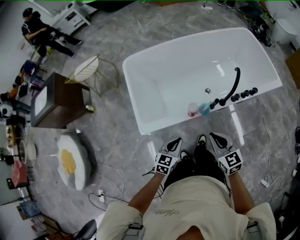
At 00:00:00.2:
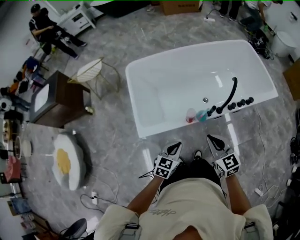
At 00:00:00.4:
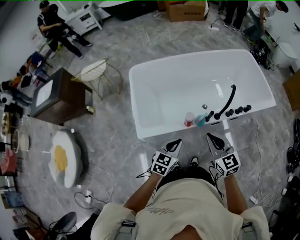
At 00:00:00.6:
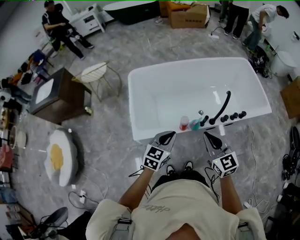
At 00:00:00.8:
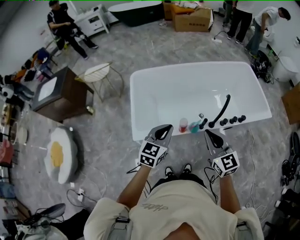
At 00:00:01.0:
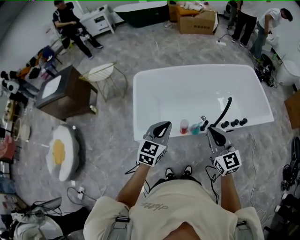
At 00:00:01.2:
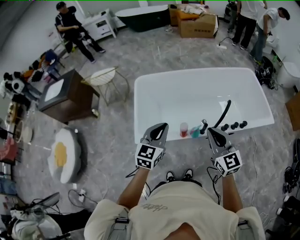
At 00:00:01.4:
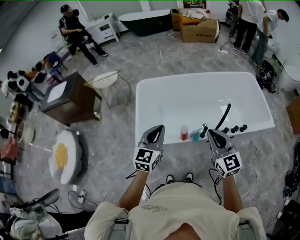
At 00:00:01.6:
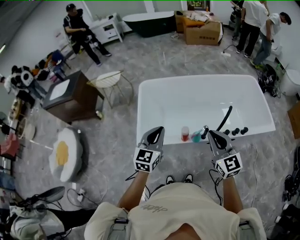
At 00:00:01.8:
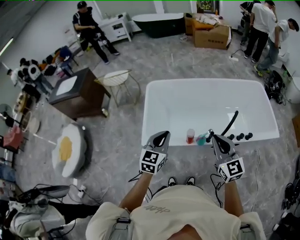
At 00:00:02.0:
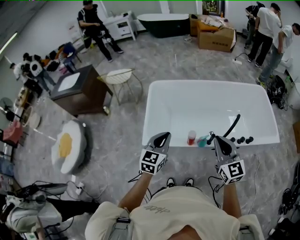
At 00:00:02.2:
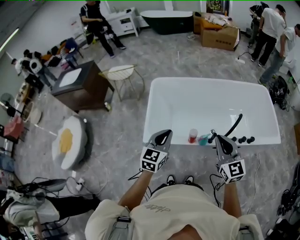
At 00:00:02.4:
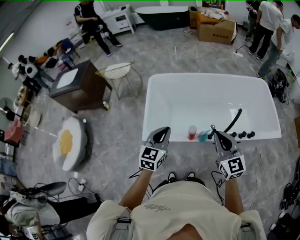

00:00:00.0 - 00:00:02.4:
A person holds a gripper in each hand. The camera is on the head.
00:00:00.0 - 00:00:01.2: The two grippers go about 20 cm upward. The right gripper rotates about 20 degrees. Meanwhile the left gripper changes its angle by roughly 30 degrees.
00:00:01.2 - 00:00:02.4: There are only small adjustments of the grippers.

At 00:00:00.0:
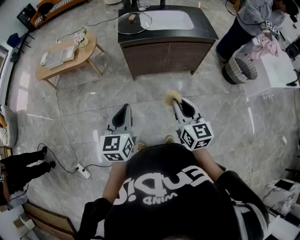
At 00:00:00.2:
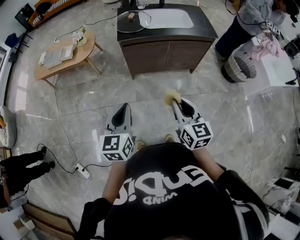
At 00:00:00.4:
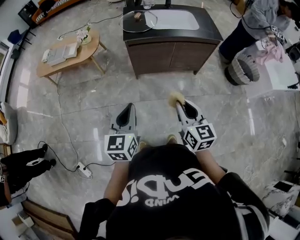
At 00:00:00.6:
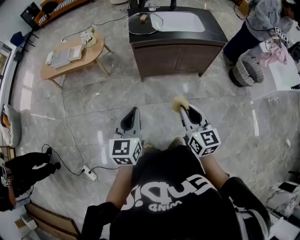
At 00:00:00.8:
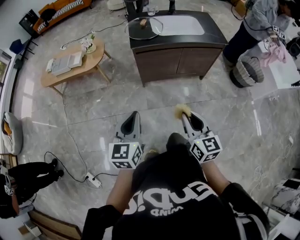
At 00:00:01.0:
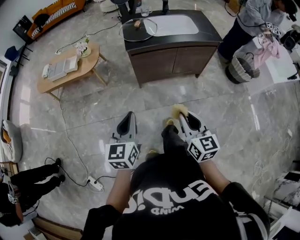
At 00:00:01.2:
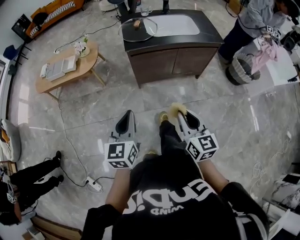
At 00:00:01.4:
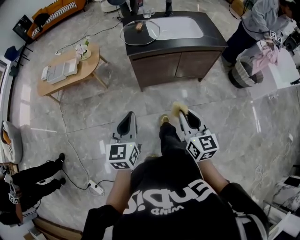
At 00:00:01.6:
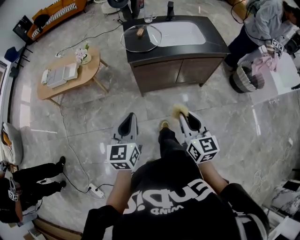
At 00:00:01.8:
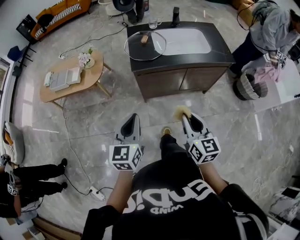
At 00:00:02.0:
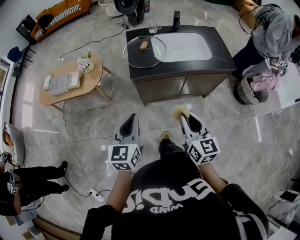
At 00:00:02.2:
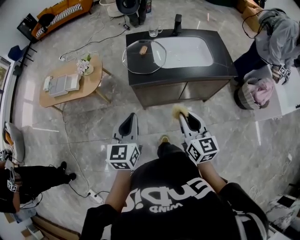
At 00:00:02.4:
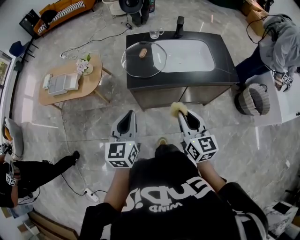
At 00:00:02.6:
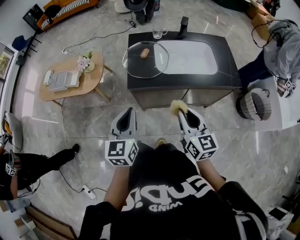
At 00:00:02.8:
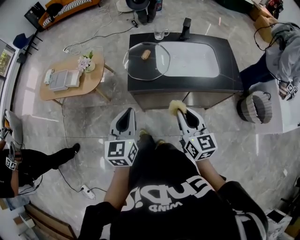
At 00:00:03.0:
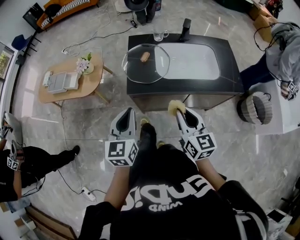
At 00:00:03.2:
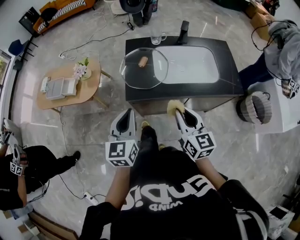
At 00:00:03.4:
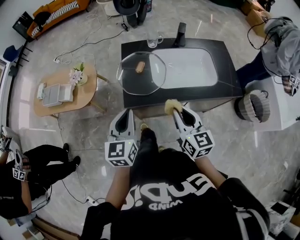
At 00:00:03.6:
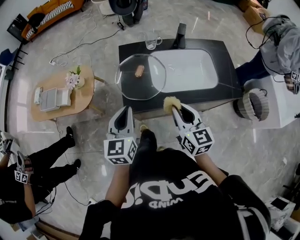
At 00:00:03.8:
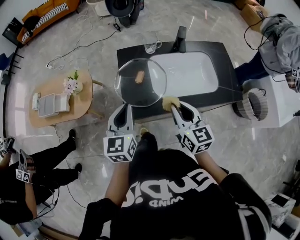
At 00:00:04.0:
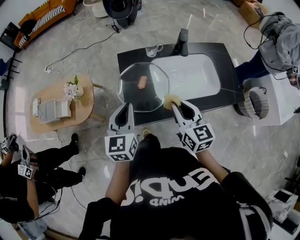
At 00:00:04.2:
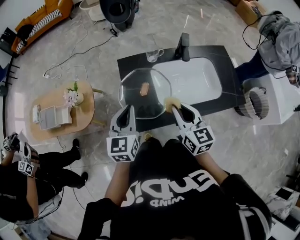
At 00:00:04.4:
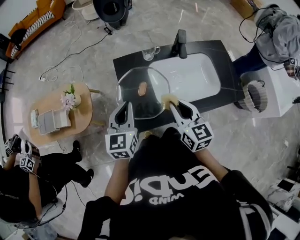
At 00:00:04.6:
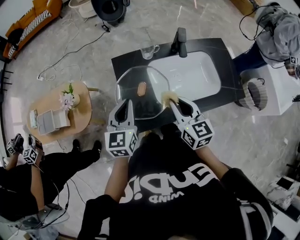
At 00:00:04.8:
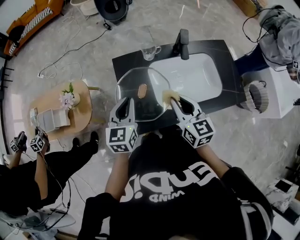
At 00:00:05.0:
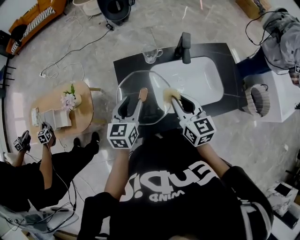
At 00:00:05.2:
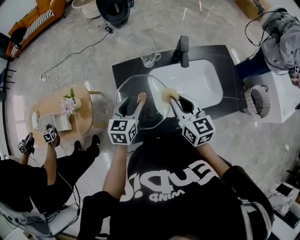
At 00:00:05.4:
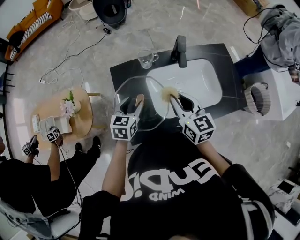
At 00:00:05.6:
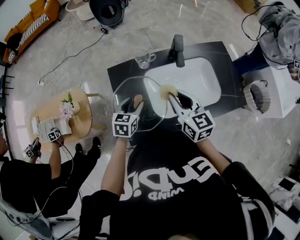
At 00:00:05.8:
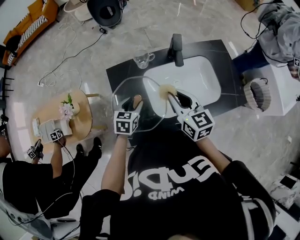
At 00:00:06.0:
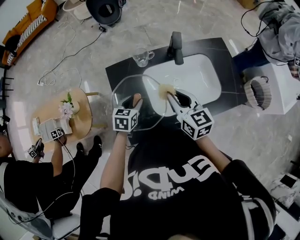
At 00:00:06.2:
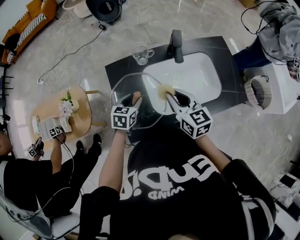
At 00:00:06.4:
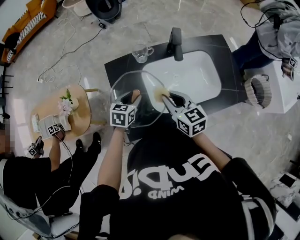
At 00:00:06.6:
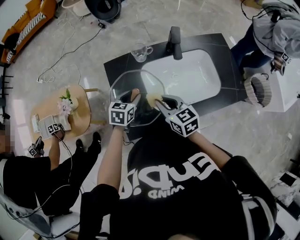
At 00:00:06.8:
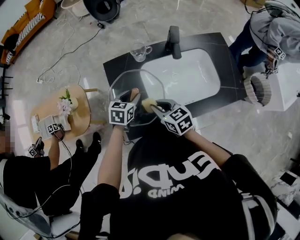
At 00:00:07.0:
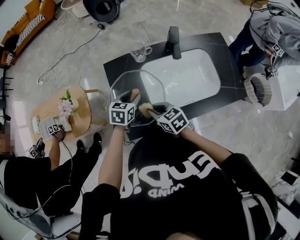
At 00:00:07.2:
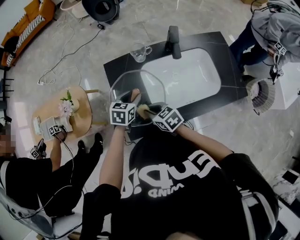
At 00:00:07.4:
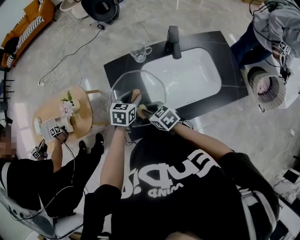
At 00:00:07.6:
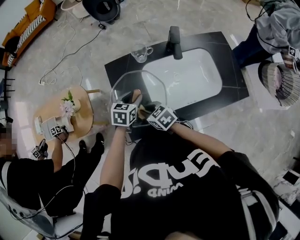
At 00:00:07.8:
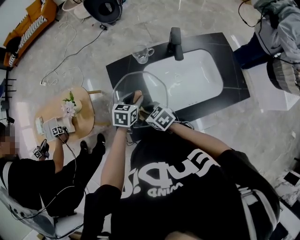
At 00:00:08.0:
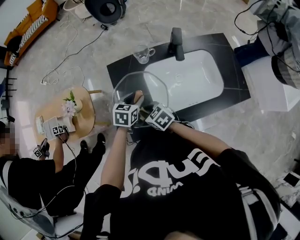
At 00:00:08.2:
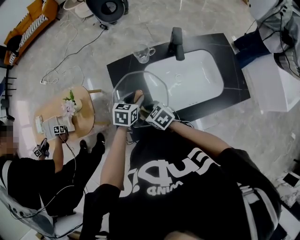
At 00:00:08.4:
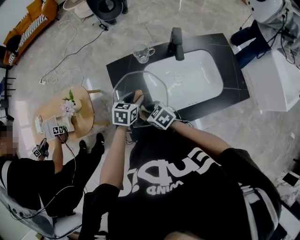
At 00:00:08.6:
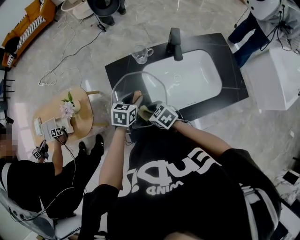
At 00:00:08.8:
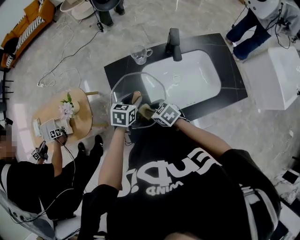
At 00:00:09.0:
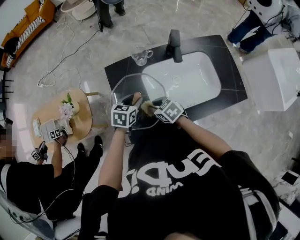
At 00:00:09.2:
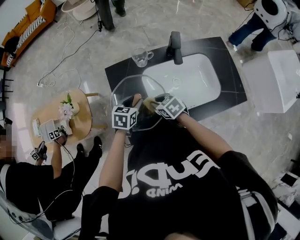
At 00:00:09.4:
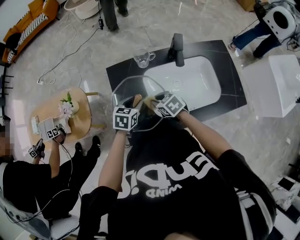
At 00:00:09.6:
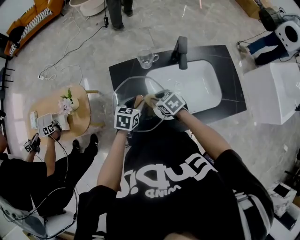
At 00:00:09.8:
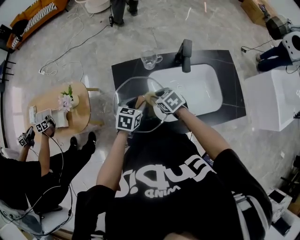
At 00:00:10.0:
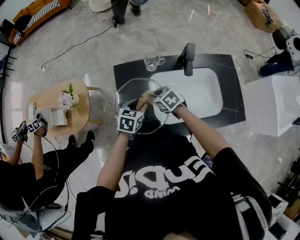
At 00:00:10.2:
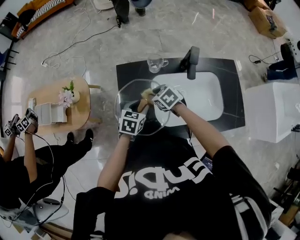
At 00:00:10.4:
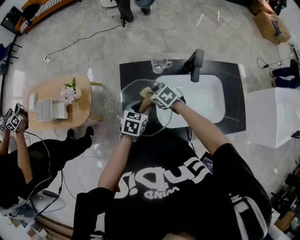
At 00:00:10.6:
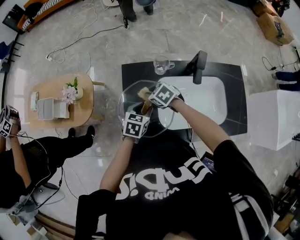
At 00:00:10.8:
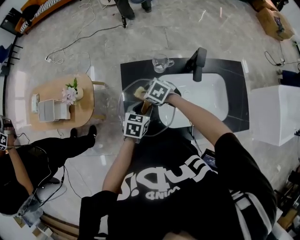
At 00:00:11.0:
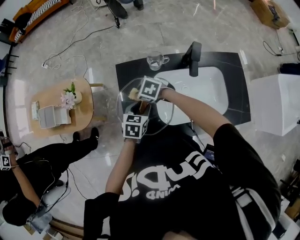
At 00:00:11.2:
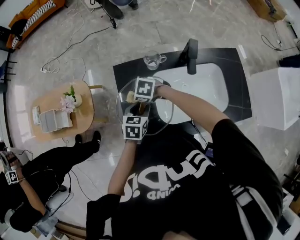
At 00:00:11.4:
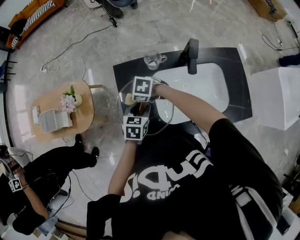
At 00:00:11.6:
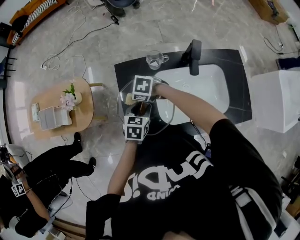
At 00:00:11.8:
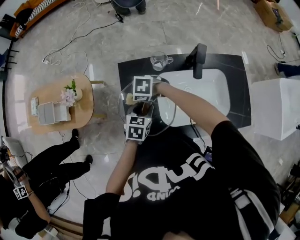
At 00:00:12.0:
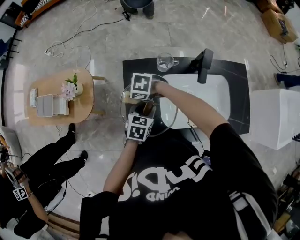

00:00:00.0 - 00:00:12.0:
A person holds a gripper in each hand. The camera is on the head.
00:00:00.0 - 00:00:01.6: The two grippers go roughly 15 cm forward and to the left.
00:00:01.6 - 00:00:03.0: The grippers both shift forward by some 25 cm.
00:00:03.0 - 00:00:04.4: Both grippers travel together forward, some 25 cm.
00:00:04.4 - 00:00:06.0: The right gripper heads forward, covering some 10 cm. Meanwhile the left gripper travels downward and forward by some 20 cm, turns by approximately 30 degrees, and opens up.
00:00:06.0 - 00:00:07.6: The right gripper heads downward and to the left, covering approximately 20 cm, and turns by approximately 40 degrees.
00:00:07.6 - 00:00:09.0: The right gripper is displaced to the right by approximately 5 cm.
00:00:09.0 - 00:00:10.4: The right gripper travels forward by about 10 cm.
00:00:10.4 - 00:00:12.0: The right gripper ends up about 10 cm from where it was, and rotates some 40 degrees.

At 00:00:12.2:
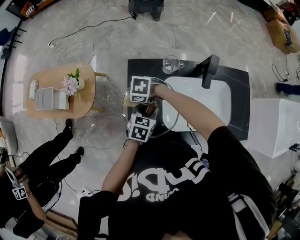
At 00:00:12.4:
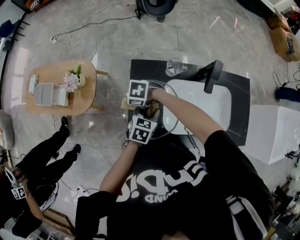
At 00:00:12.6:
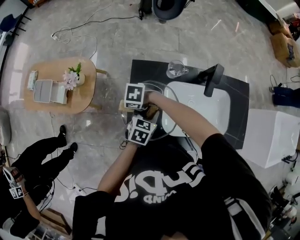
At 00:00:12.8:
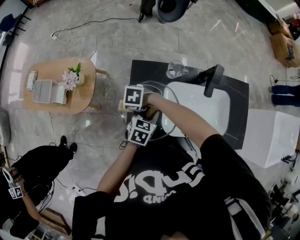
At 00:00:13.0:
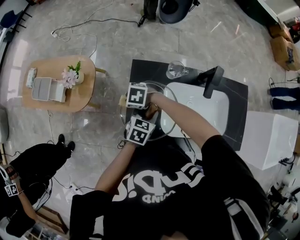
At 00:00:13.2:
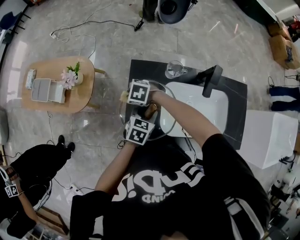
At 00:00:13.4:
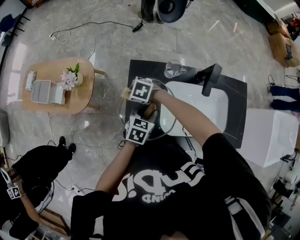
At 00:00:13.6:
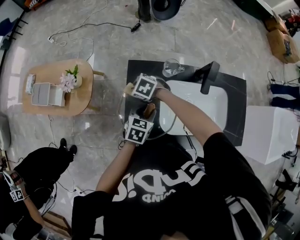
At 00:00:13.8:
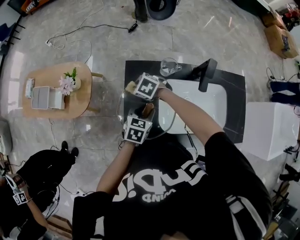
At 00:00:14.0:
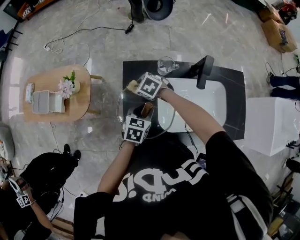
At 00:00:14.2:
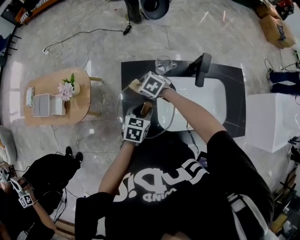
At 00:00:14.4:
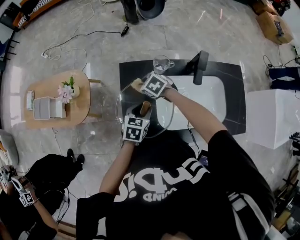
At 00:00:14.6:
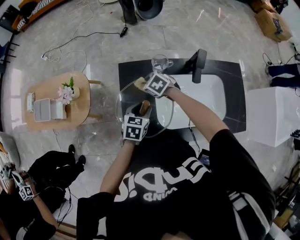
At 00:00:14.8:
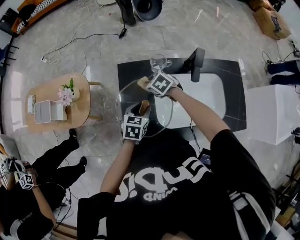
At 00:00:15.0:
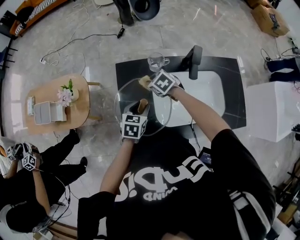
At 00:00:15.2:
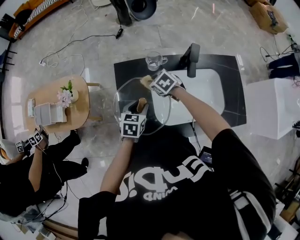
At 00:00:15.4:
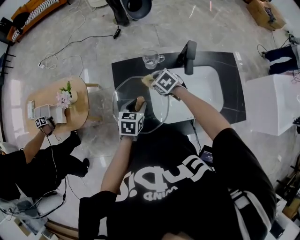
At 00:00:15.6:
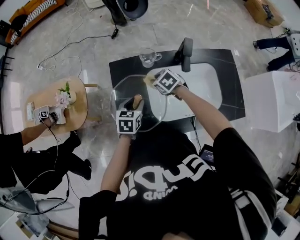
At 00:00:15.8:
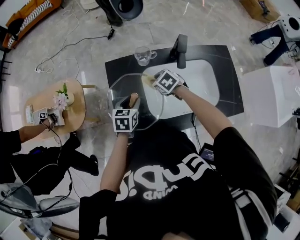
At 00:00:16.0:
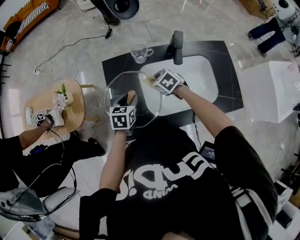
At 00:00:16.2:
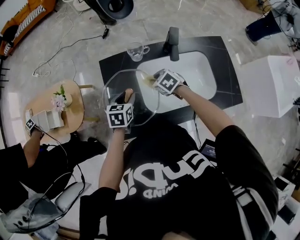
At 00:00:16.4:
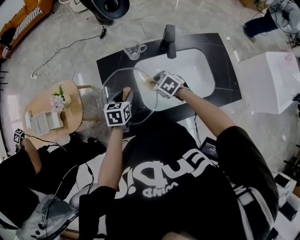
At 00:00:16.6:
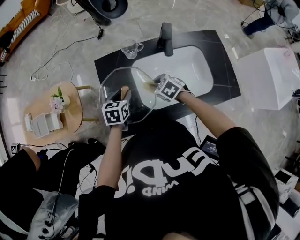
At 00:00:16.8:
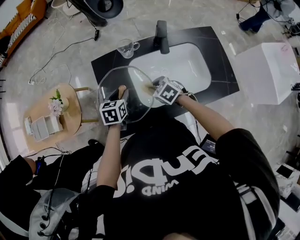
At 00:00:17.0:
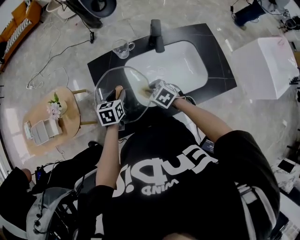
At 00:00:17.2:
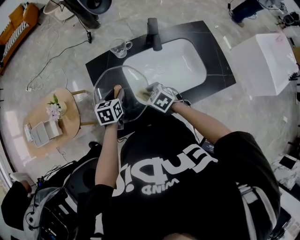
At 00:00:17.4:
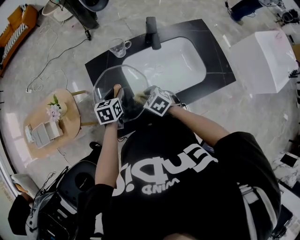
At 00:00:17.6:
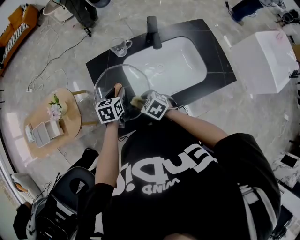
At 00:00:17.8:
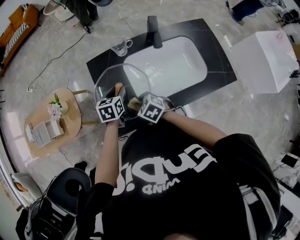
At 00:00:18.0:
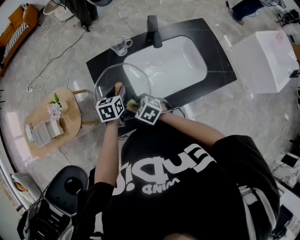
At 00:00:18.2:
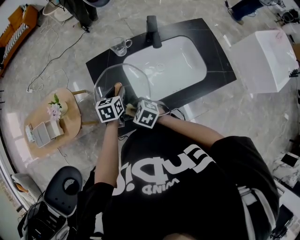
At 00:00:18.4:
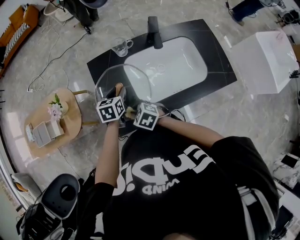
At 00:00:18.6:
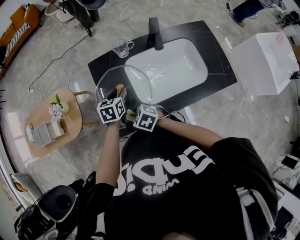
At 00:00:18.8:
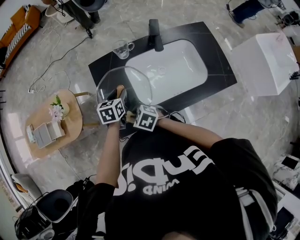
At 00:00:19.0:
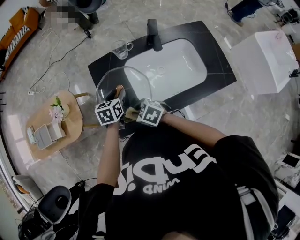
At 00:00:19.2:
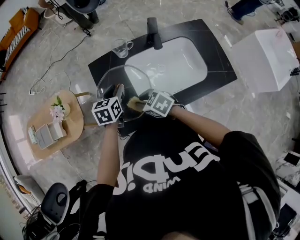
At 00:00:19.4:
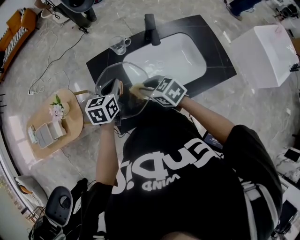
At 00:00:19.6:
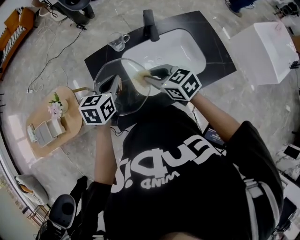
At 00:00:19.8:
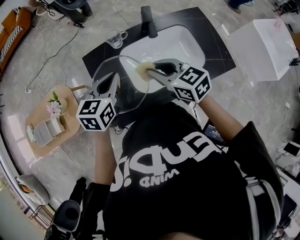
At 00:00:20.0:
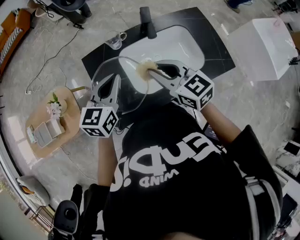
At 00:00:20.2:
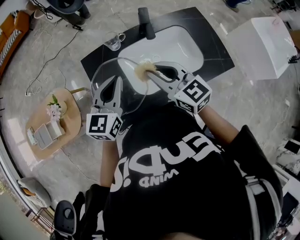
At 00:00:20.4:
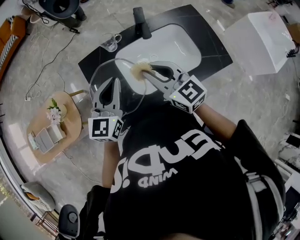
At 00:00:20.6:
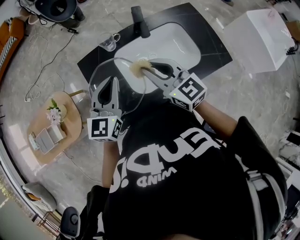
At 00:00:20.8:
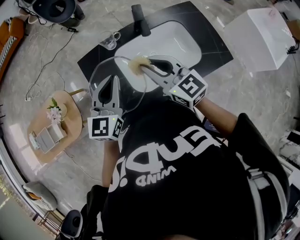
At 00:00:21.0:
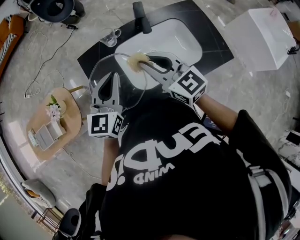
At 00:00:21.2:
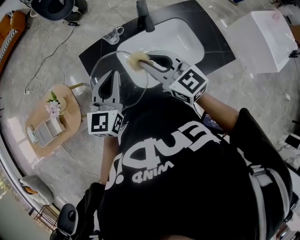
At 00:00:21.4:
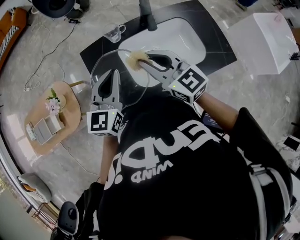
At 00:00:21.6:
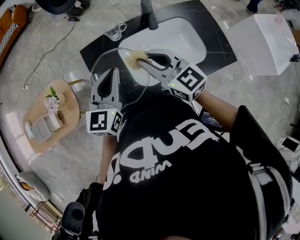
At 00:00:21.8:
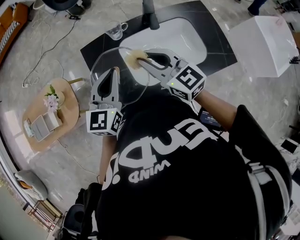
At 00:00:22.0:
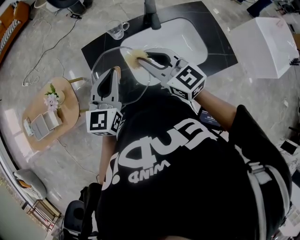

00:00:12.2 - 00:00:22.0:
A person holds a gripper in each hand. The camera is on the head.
00:00:12.2 - 00:00:13.6: The right gripper moves some 5 cm.
00:00:13.6 - 00:00:15.0: The right gripper moves to the right, about 15 cm, and swivels some 20 degrees.
00:00:15.0 - 00:00:16.4: The right gripper is displaced backward and to the right by some 15 cm.
00:00:16.4 - 00:00:17.8: The right gripper heads backward and to the left, covering roughly 15 cm.
00:00:17.8 - 00:00:19.2: The left gripper travels upward by approximately 5 cm.
00:00:19.2 - 00:00:20.6: The left gripper is displaced upward by approximately 15 cm, turns by approximately 40 degrees, and closes its fingers, while the right gripper is displaced upward and to the right by approximately 20 cm, and angles its fingers upward, by about 40 degrees.
00:00:20.6 - 00:00:22.0: The grippers move only a little.
